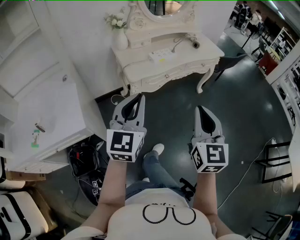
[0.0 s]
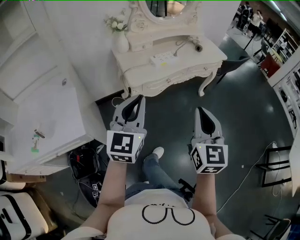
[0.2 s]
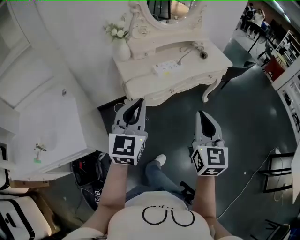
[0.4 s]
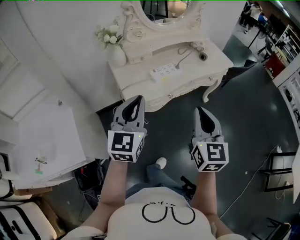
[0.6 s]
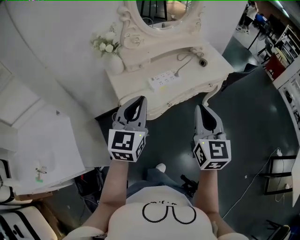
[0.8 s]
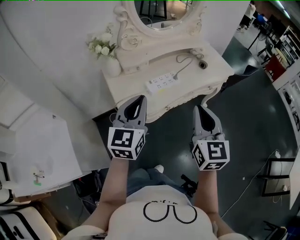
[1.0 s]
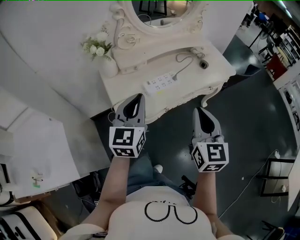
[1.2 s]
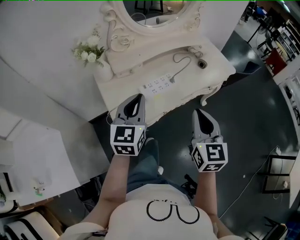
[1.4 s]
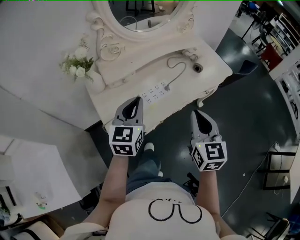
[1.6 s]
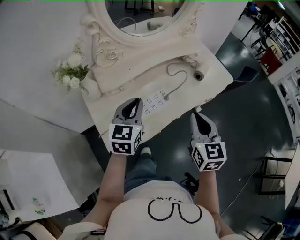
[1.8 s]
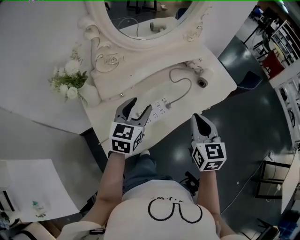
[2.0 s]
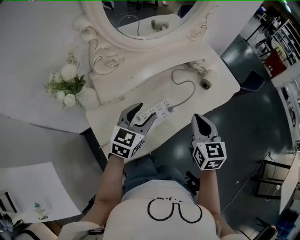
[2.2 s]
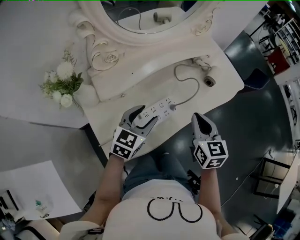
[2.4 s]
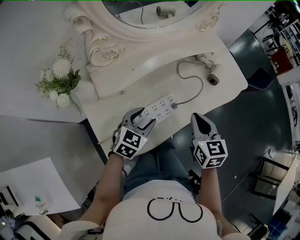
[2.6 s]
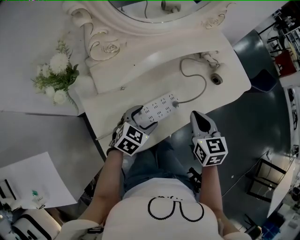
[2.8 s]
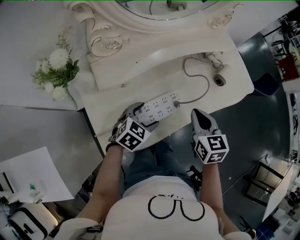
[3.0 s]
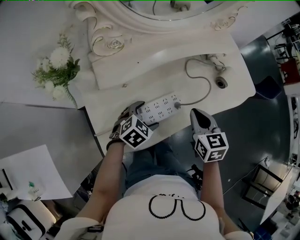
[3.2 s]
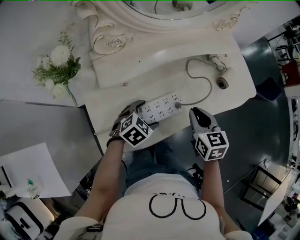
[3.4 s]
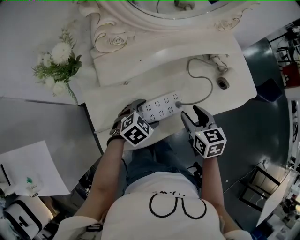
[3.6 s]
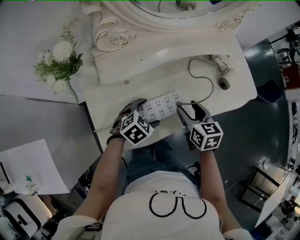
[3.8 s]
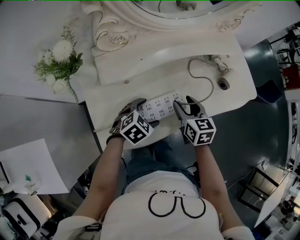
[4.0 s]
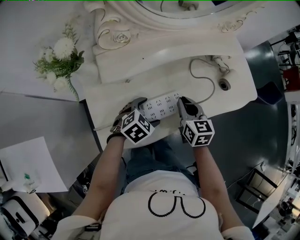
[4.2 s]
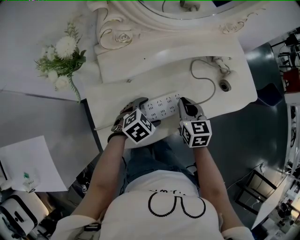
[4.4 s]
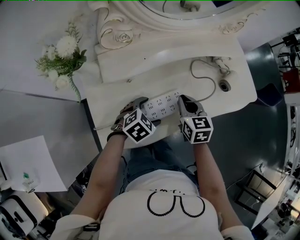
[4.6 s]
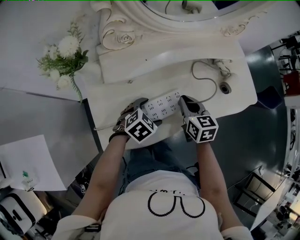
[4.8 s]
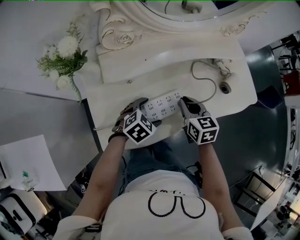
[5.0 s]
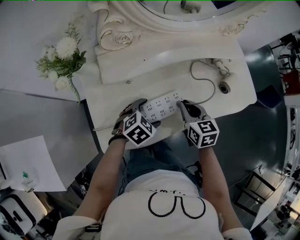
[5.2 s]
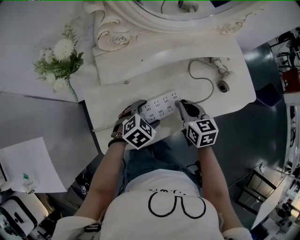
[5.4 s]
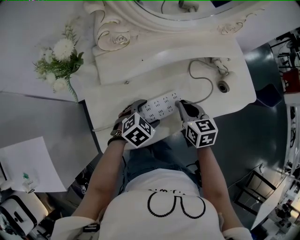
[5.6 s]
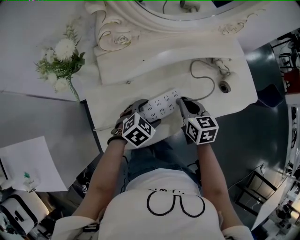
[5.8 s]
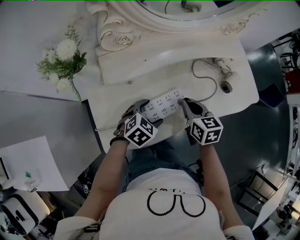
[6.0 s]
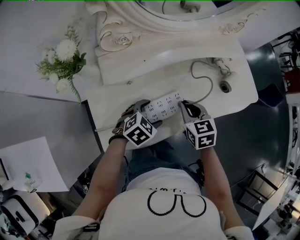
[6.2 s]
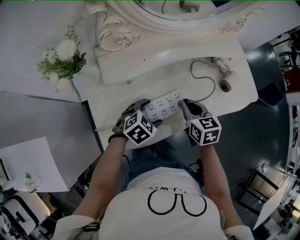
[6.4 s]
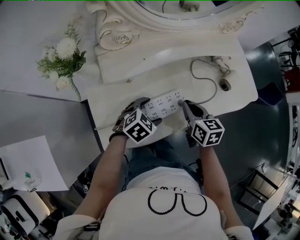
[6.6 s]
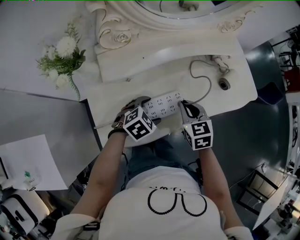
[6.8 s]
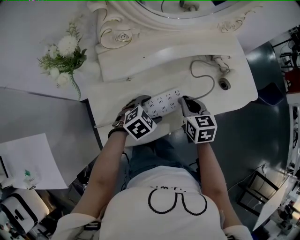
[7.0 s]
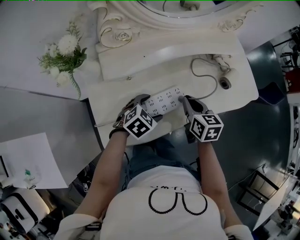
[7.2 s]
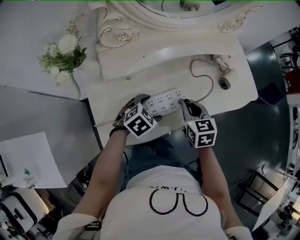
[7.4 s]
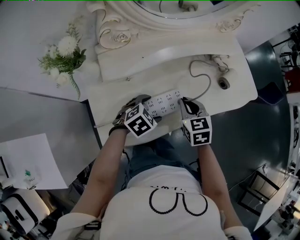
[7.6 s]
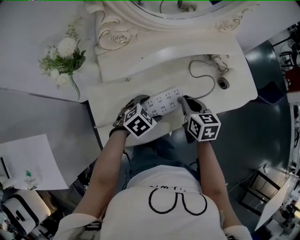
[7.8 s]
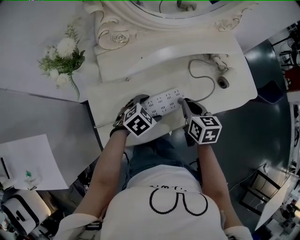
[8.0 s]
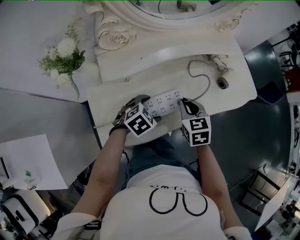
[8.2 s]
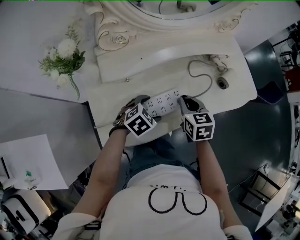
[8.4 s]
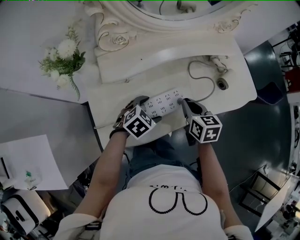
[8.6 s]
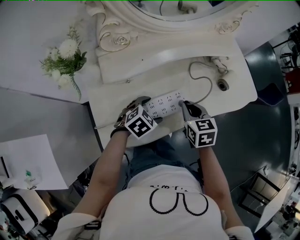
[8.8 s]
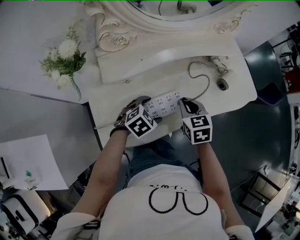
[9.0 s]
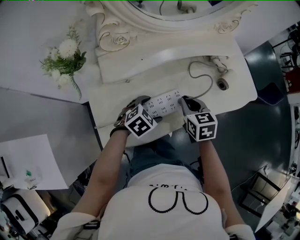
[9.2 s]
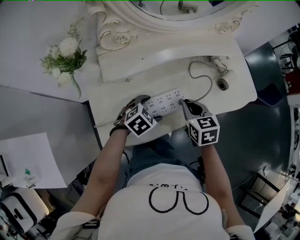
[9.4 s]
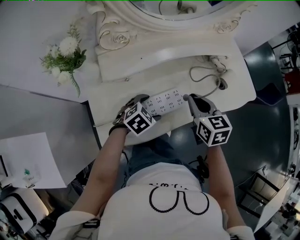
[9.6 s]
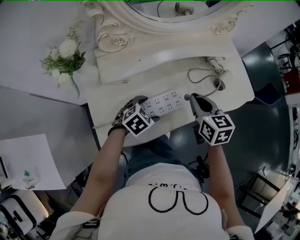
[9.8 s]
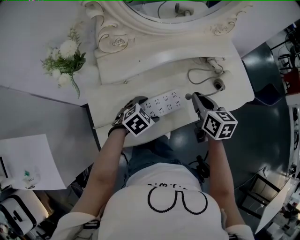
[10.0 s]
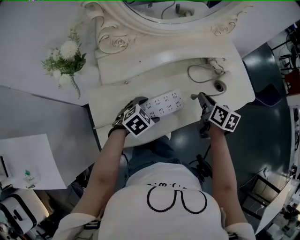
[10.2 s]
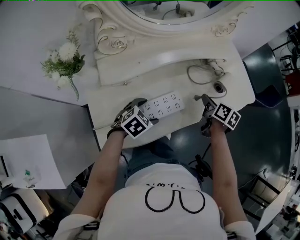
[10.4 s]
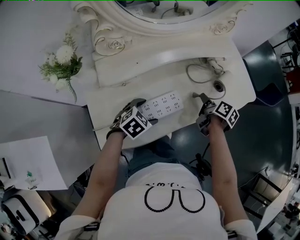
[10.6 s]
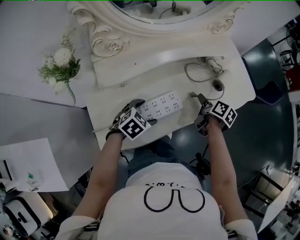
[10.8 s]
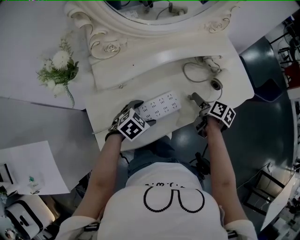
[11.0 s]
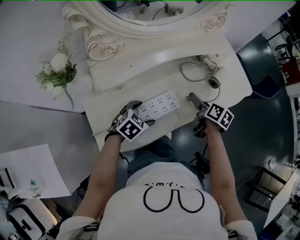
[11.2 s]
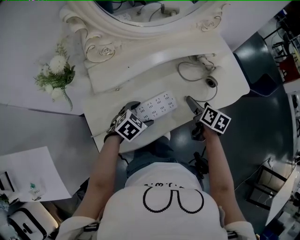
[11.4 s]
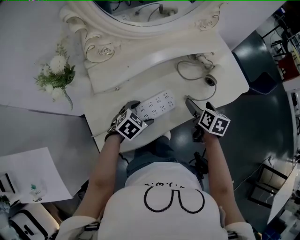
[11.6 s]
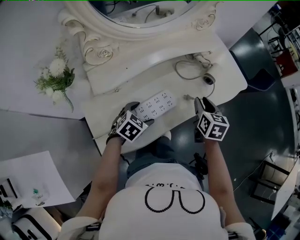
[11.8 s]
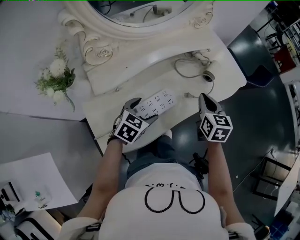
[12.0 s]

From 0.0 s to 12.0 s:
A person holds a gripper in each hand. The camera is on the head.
From 0.0 s to 1.6 s: Both grippers are carried forward, some 40 cm.
From 1.6 s to 3.0 s: The left gripper is displaced downward and forward by about 25 cm, tilts its fingers some 30 degrees downward, and opens. Meanwhile the right gripper shifts about 25 cm forward and downward, and swivels some 20 degrees.
From 3.0 s to 4.4 s: The right gripper travels to the left and downward by about 10 cm, and opens, then closes once more.
From 4.4 s to 7.6 s: The grippers move only a little.
From 9.0 s to 10.4 s: The right gripper shifts some 15 cm to the right and forward, and rolls clockwise, seen from behind, by approximately 50 degrees.
From 10.4 s to 12.0 s: The right gripper shifts roughly 10 cm upward and backward, rotates about 40 degrees, and opens, then closes once more.

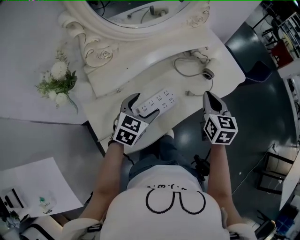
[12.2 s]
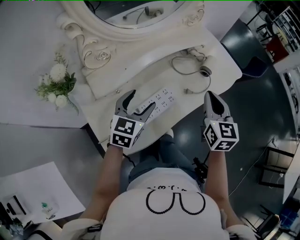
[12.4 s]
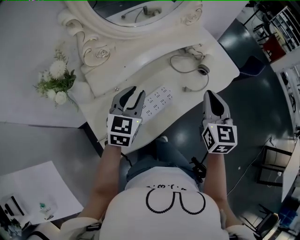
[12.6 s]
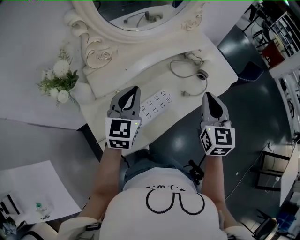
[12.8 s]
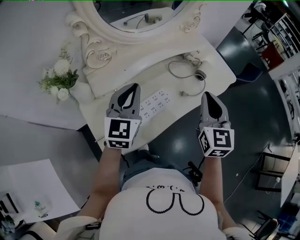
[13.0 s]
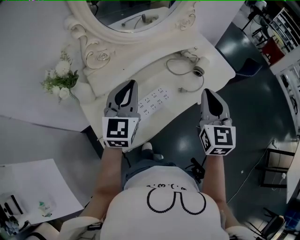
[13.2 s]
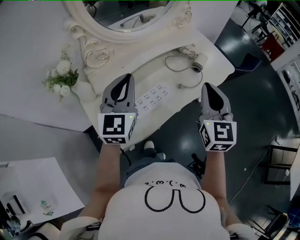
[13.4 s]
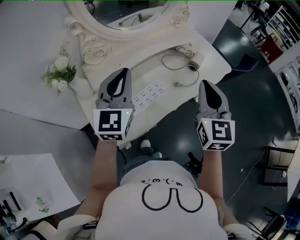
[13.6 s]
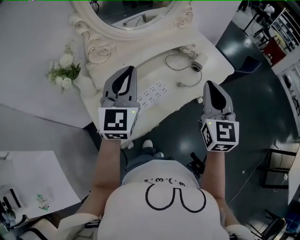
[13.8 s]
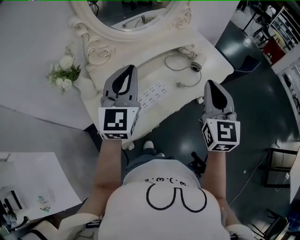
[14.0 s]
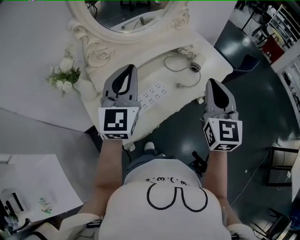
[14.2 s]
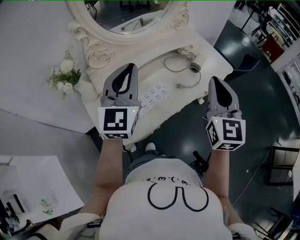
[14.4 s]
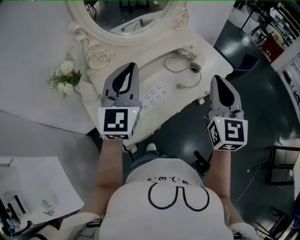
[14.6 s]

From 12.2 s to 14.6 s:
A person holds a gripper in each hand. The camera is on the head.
From 12.2 s to 13.4 s: The right gripper heads upward and backward, covering approximately 15 cm, and swivels about 20 degrees; the left gripper is displaced upward by about 20 cm, tilts its fingers roughly 30 degrees upward, and closes.
From 13.4 s to 14.6 s: Both grippers move upward, roughly 5 cm.

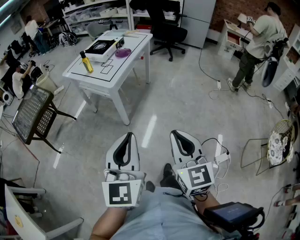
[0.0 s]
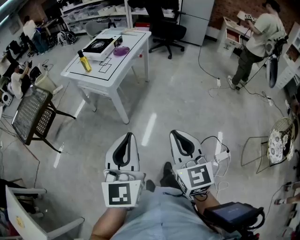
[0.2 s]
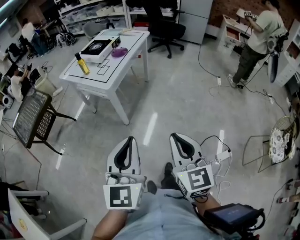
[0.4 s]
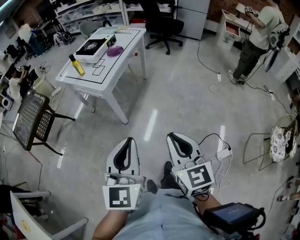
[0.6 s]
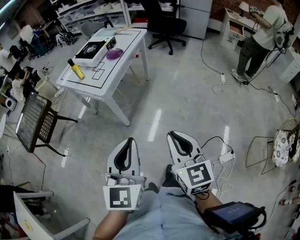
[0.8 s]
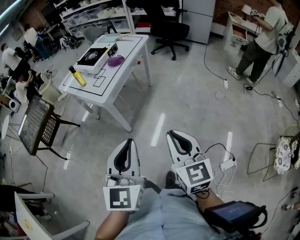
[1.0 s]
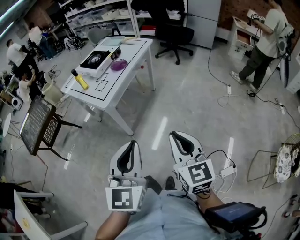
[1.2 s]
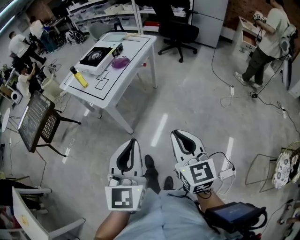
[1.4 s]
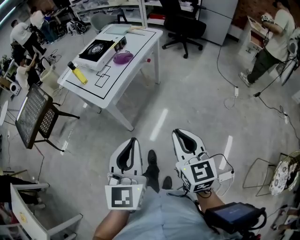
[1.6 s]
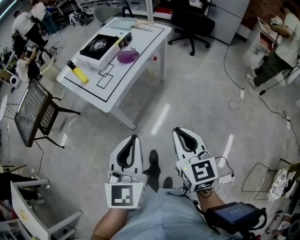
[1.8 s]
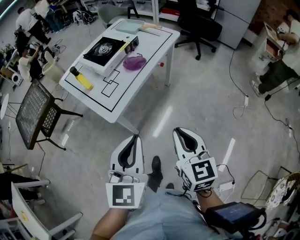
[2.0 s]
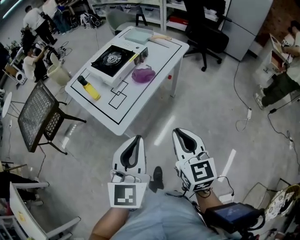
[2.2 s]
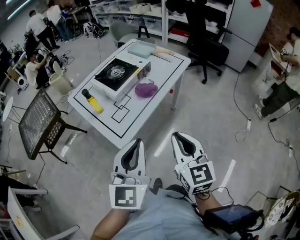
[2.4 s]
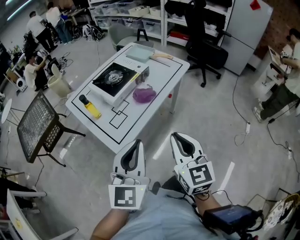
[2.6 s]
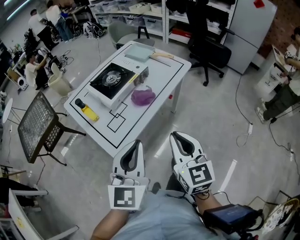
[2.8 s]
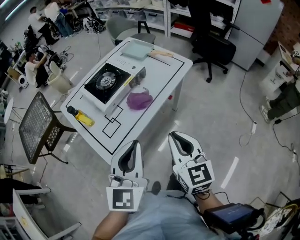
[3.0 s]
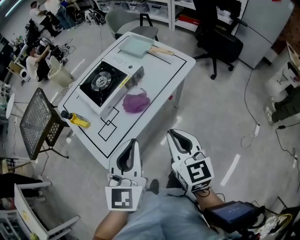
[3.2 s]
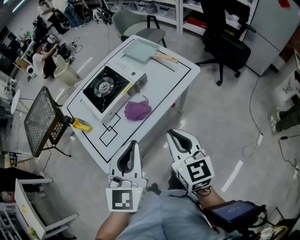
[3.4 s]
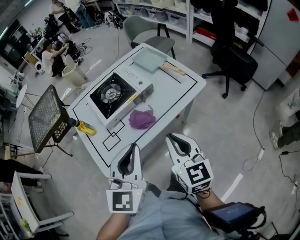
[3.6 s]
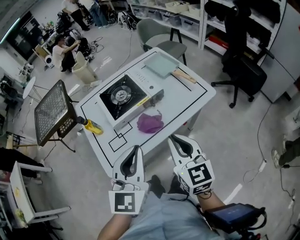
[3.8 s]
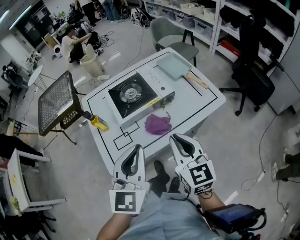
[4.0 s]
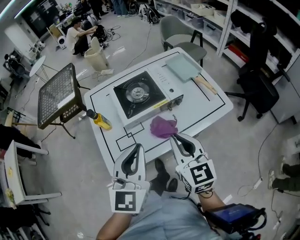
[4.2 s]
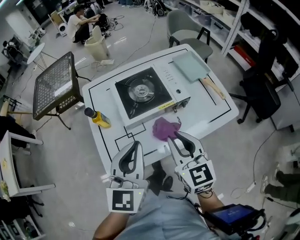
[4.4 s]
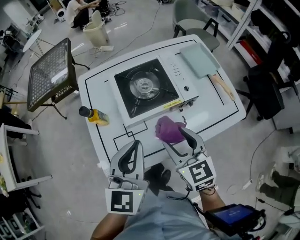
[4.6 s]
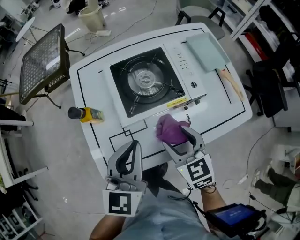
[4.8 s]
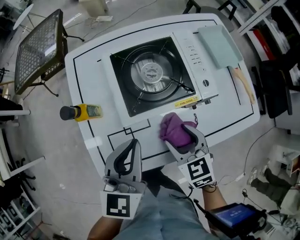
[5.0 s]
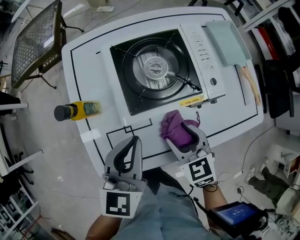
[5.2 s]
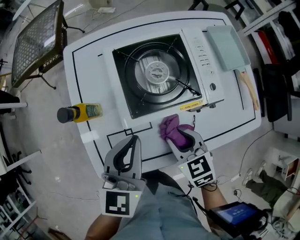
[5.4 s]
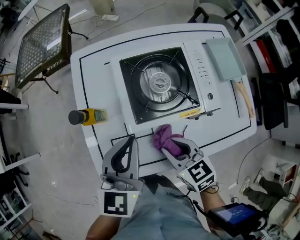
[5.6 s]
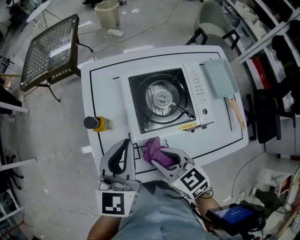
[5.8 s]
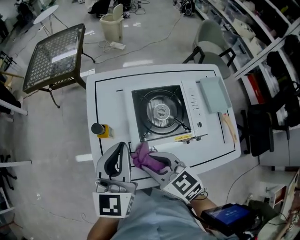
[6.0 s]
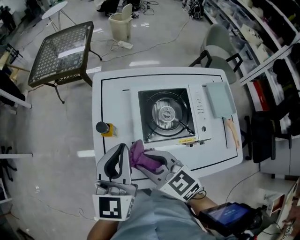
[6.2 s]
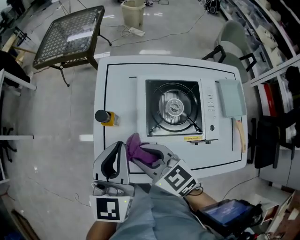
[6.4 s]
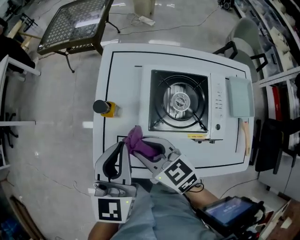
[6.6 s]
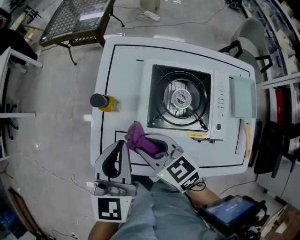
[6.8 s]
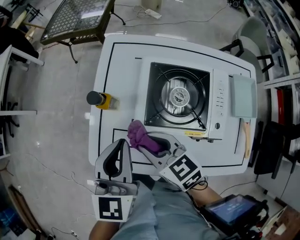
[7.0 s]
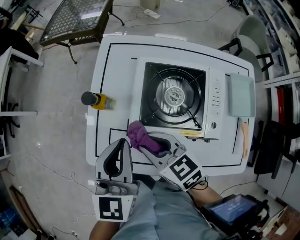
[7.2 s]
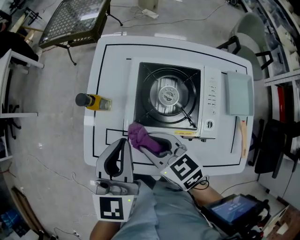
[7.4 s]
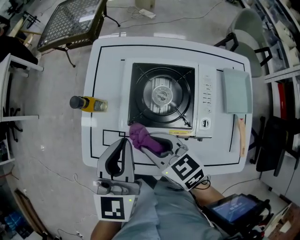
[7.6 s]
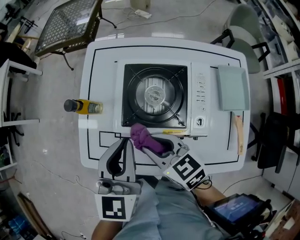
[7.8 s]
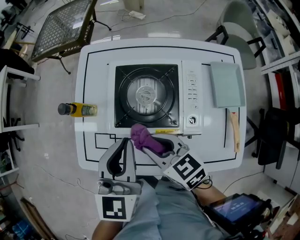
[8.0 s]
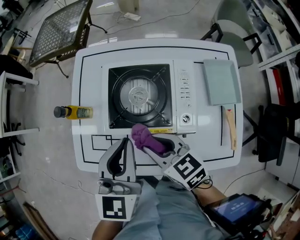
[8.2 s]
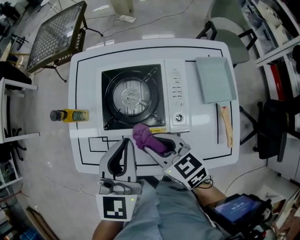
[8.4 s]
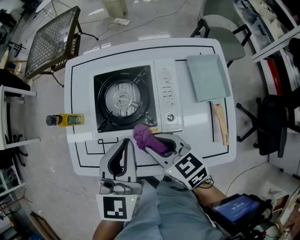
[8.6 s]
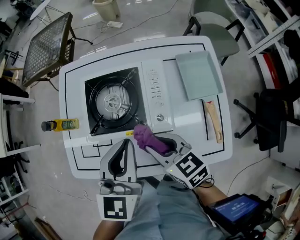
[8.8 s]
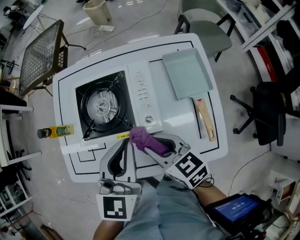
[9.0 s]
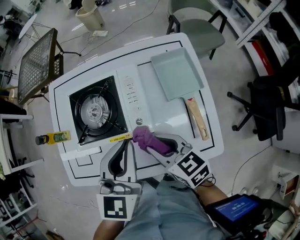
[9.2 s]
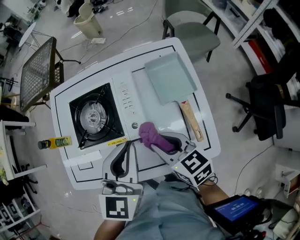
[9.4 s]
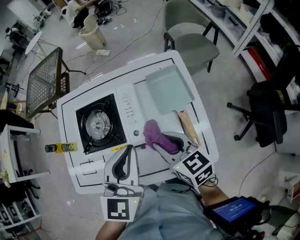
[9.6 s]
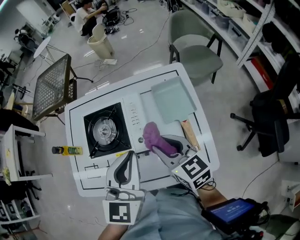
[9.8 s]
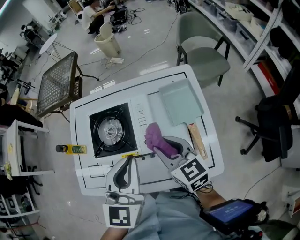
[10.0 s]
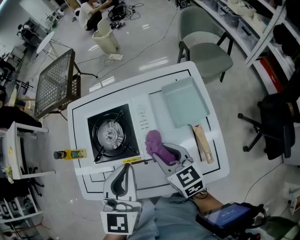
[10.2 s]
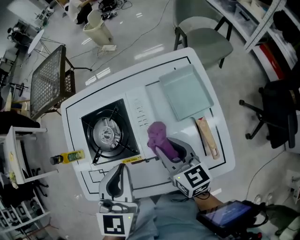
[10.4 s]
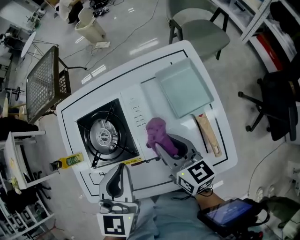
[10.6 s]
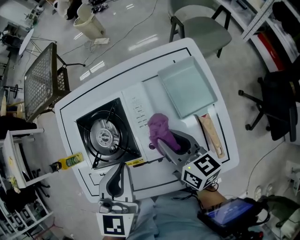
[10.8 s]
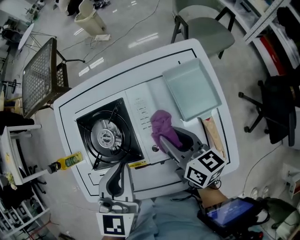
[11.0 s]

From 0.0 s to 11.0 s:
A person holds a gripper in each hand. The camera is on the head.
From 0.0 s to 1.6 s: The right gripper is displaced forward by roughly 30 cm. The left gripper shifts some 30 cm forward and to the right.
From 1.6 s to 3.2 s: The two grippers travel together, forward, some 50 cm.
From 3.2 s to 4.8 s: The left gripper moves approximately 25 cm, and changes its angle by roughly 30 degrees; the right gripper moves approximately 30 cm, changes its angle by some 40 degrees, and opens up.
From 4.8 s to 6.2 s: The left gripper changes place by about 15 cm; the right gripper ends up some 20 cm from where it was, changes its angle by approximately 40 degrees, and closes its fingers.
From 6.2 s to 7.8 s: The left gripper travels to the right, backward and downward by approximately 15 cm, while the right gripper goes about 15 cm to the right and downward.
From 7.8 s to 9.4 s: The right gripper shifts about 25 cm to the right, and turns by roughly 20 degrees. Meanwhile the left gripper heads to the right and backward, covering approximately 25 cm, and changes its angle by about 20 degrees.
From 9.4 s to 11.0 s: The right gripper shifts some 10 cm forward, and changes its angle by some 30 degrees, while the left gripper heads forward and to the left, covering roughly 10 cm.
